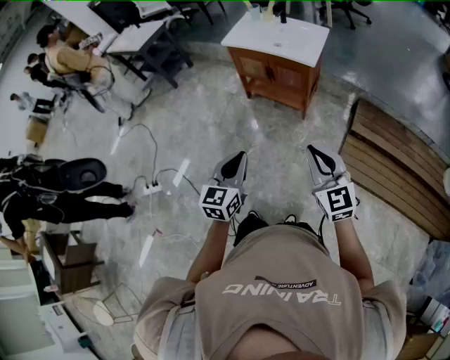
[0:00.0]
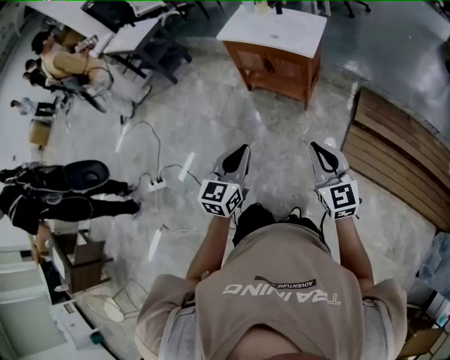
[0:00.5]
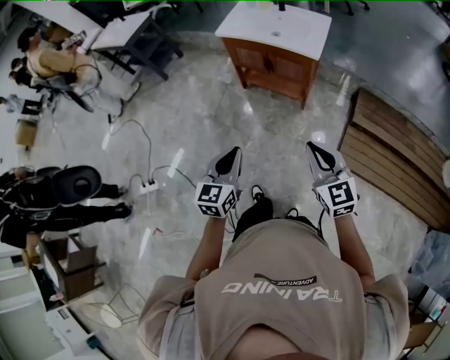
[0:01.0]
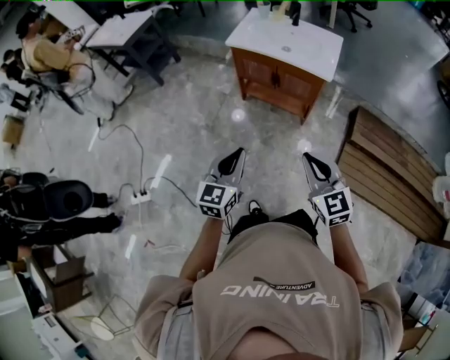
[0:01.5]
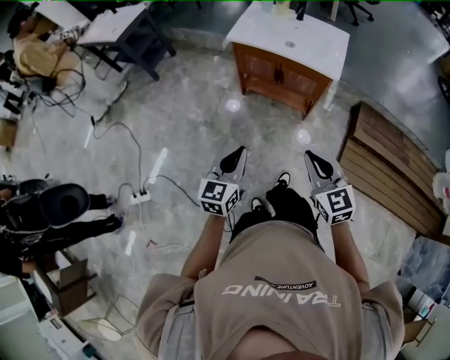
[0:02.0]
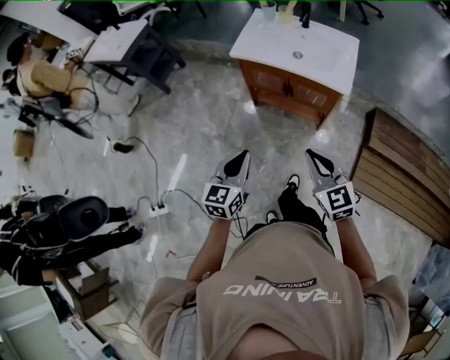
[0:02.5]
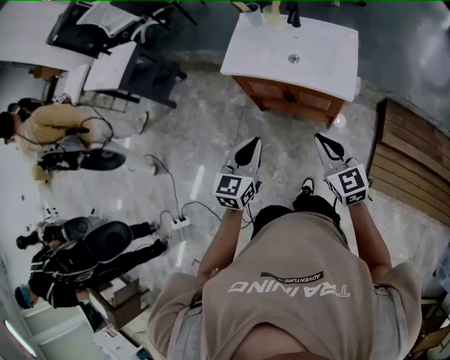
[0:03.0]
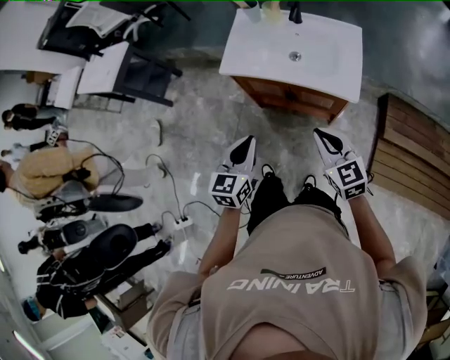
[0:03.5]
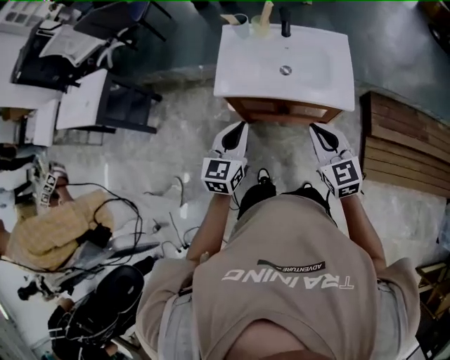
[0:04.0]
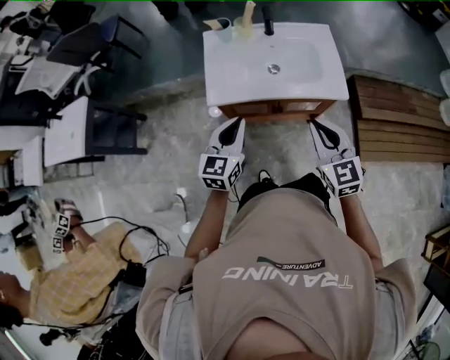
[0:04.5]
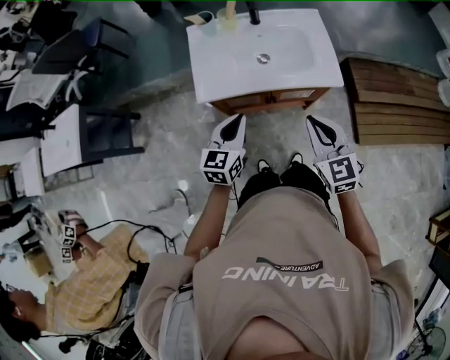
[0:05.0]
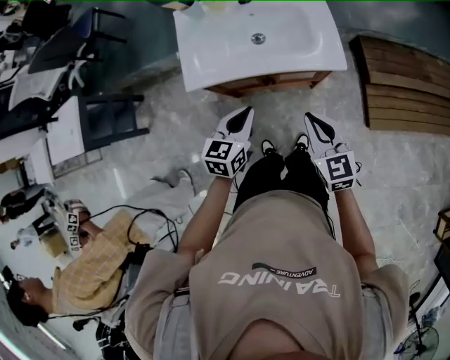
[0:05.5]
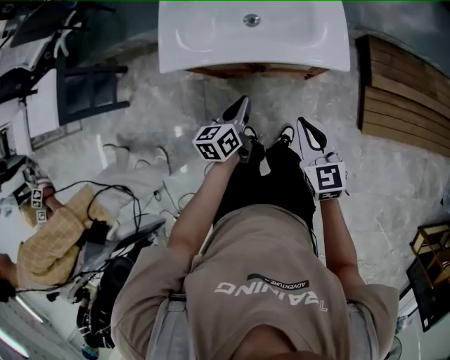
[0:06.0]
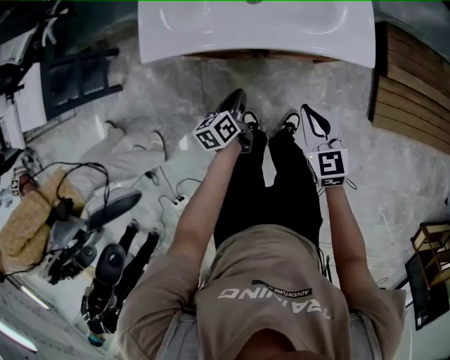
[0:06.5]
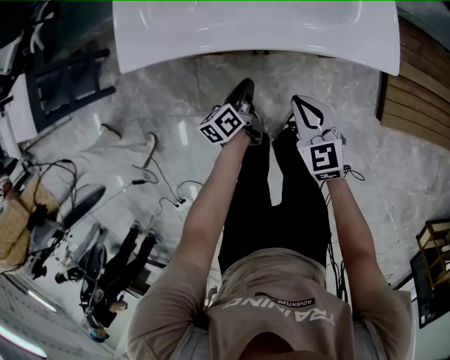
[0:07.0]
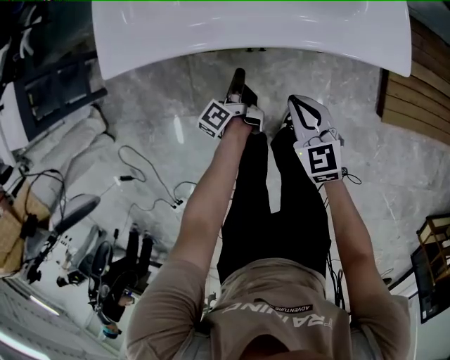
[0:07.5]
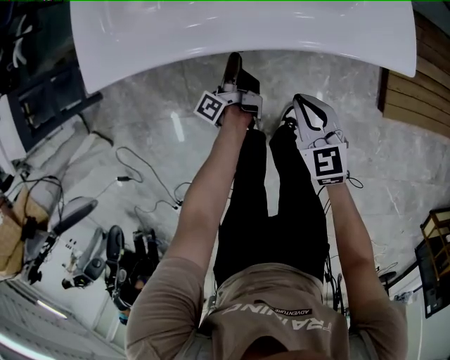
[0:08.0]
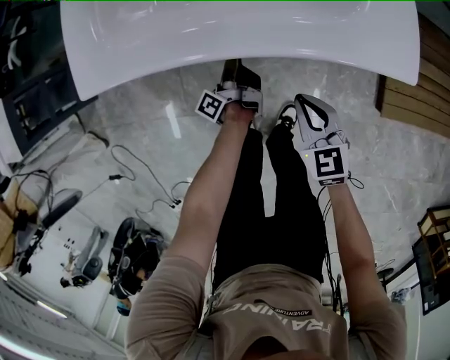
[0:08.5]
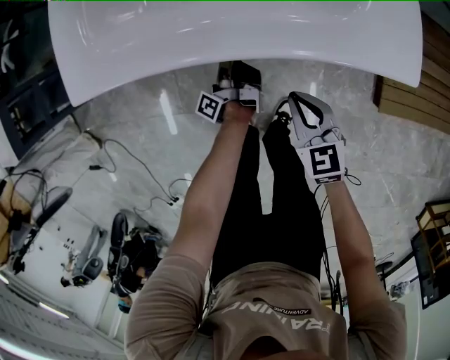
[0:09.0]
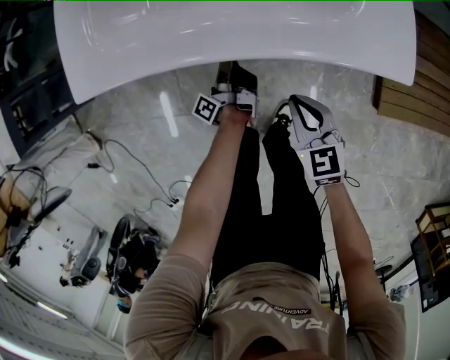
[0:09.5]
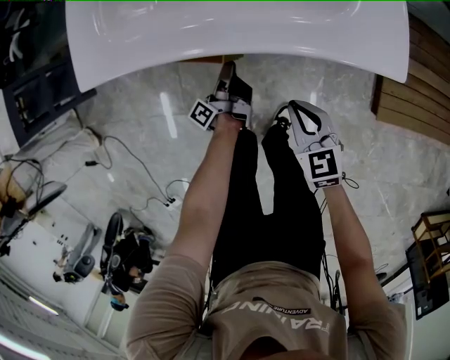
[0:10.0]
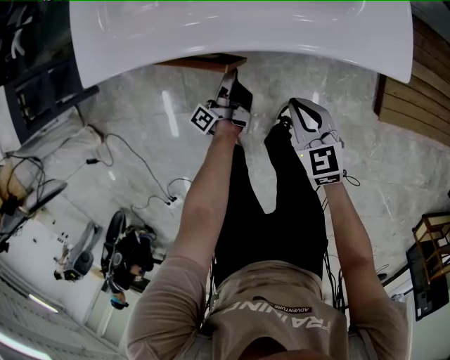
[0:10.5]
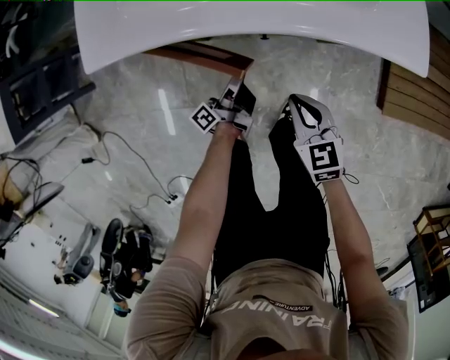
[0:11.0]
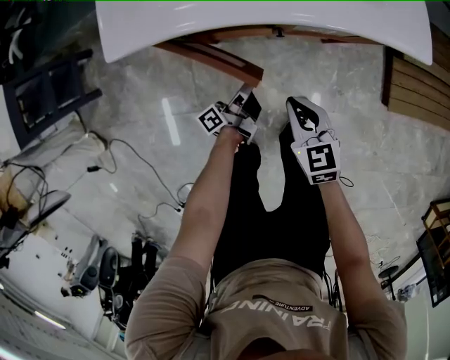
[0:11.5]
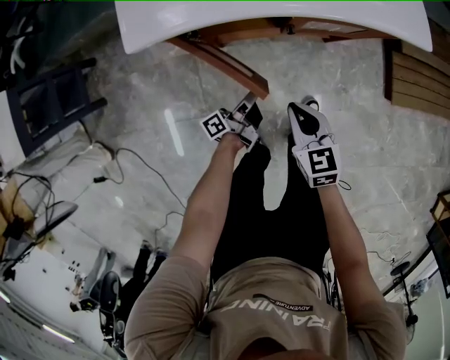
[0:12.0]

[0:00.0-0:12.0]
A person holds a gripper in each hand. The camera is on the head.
0:00.0 to 0:02.0: Both grippers travel together forward and to the left, approximately 20 cm.
0:02.0 to 0:04.0: Both grippers move forward, about 35 cm.
0:04.0 to 0:06.0: The two grippers go roughly 20 cm downward and to the right. The left gripper changes its angle by approximately 30 degrees.
0:06.0 to 0:08.0: Both grippers travel together downward, some 25 cm. The left gripper rolls counterclockwise, seen from behind, by approximately 60 degrees, and opens up.
0:08.0 to 0:10.0: The grippers move only a little.
0:10.0 to 0:12.0: The left gripper heads backward and to the left, covering approximately 15 cm, and rotates about 30 degrees. Meanwhile the right gripper shifts about 15 cm to the left.

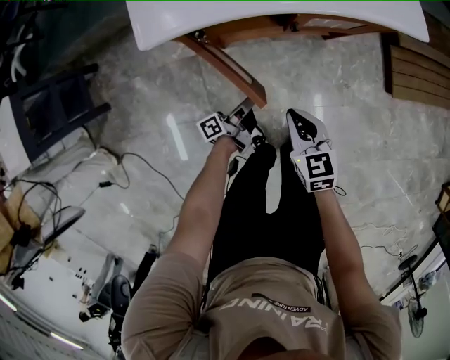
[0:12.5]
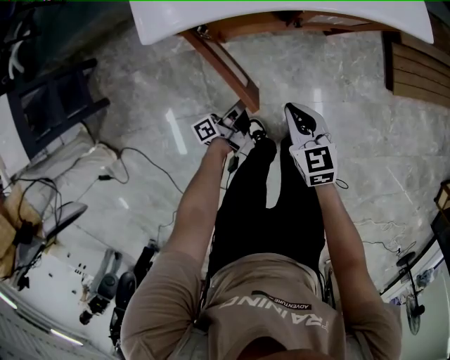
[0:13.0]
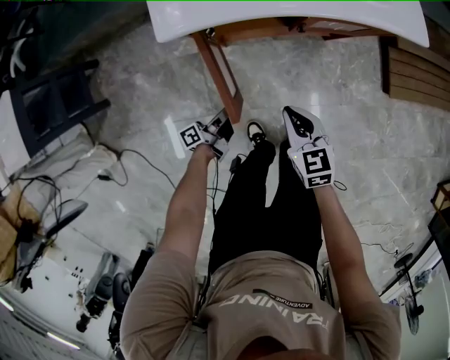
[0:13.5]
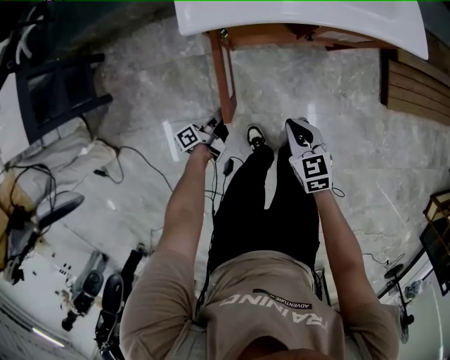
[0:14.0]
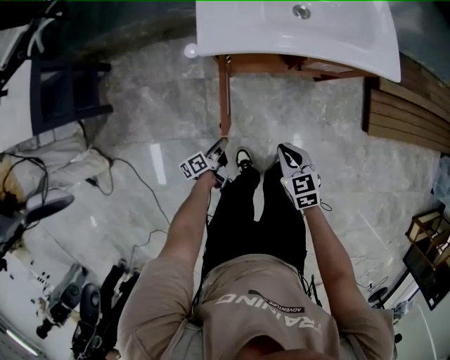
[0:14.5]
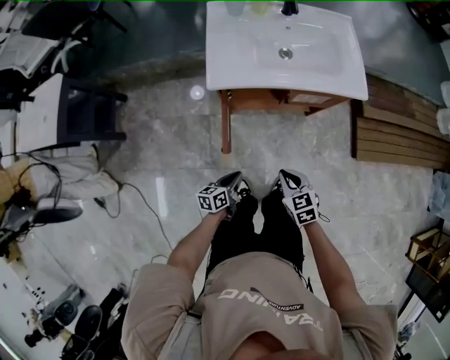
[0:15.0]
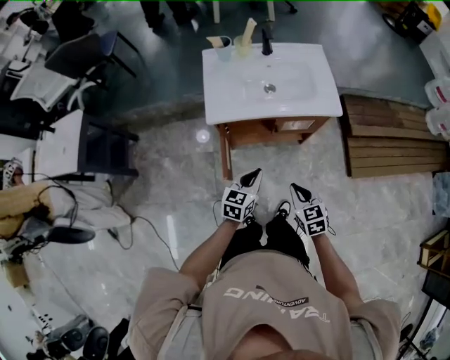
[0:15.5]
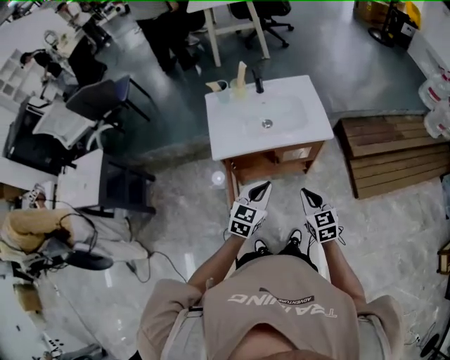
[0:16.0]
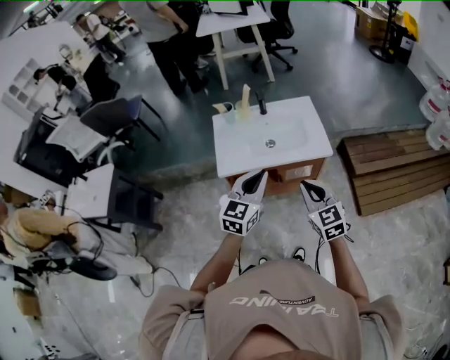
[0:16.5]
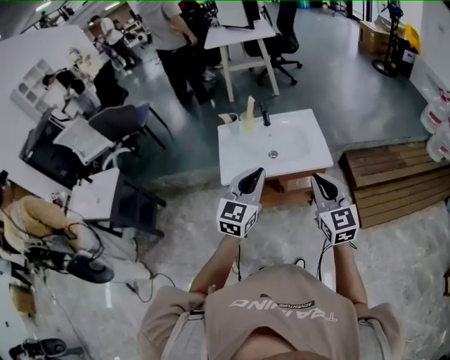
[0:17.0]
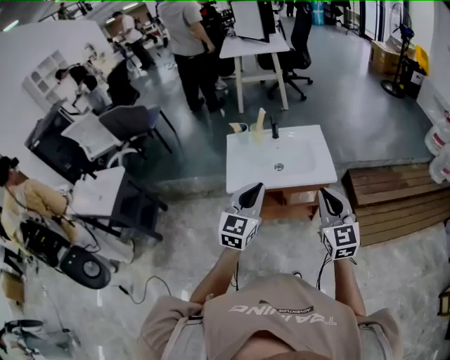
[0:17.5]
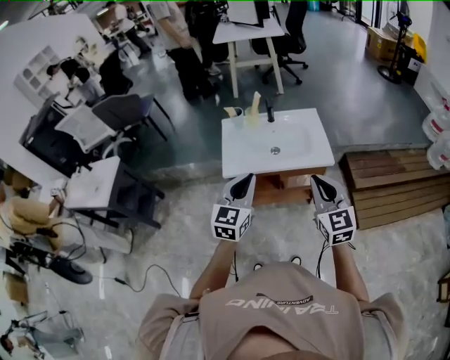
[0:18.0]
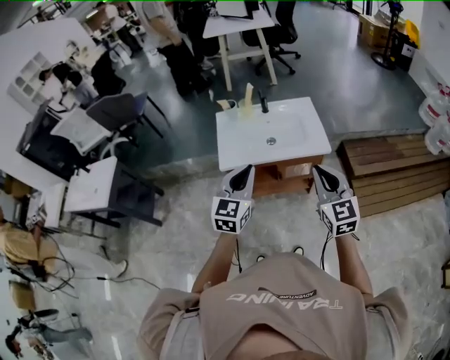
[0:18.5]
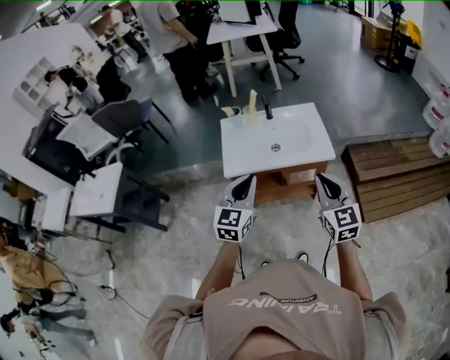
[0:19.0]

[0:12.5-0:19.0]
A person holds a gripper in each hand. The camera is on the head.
0:12.5 to 0:14.5: The right gripper heads backward, covering roughly 5 cm. Meanwhile the left gripper shifts about 15 cm to the left and backward, and changes its angle by roughly 30 degrees.
0:14.5 to 0:17.0: Both grippers move upward, roughly 60 cm. The left gripper rotates around the line of its fingers by roughly 80 degrees, clockwise from behind. Meanwhile the right gripper tilts its fingers roughly 40 degrees upward.
0:17.0 to 0:19.0: The left gripper shifts by some 5 cm.

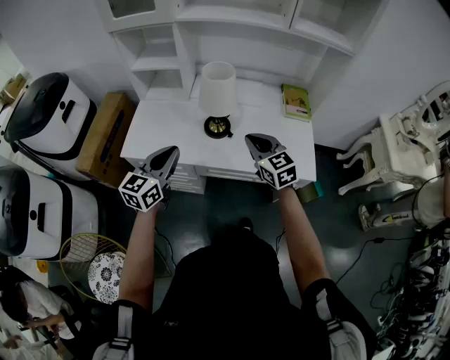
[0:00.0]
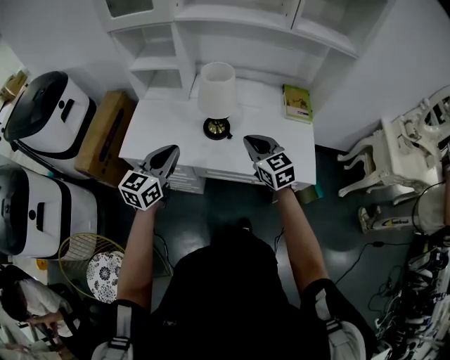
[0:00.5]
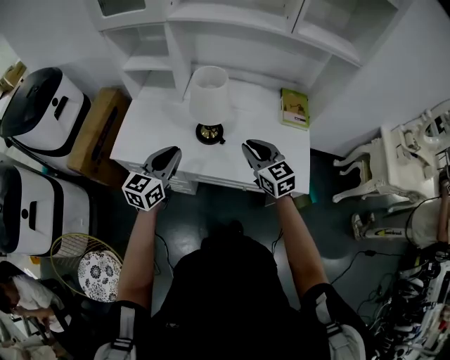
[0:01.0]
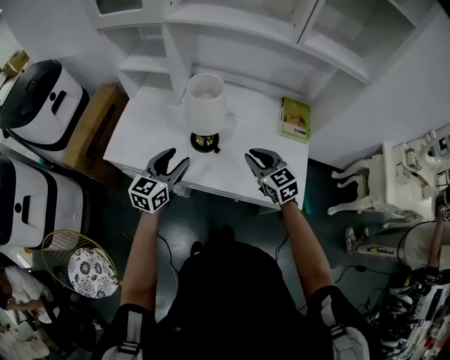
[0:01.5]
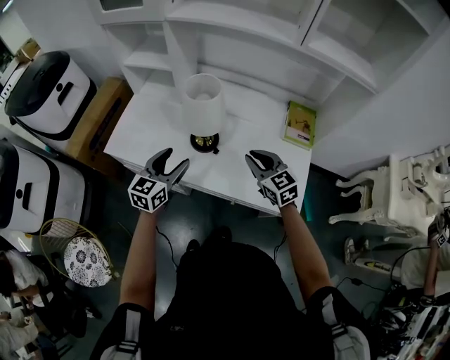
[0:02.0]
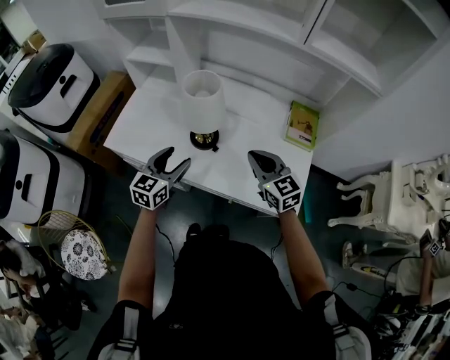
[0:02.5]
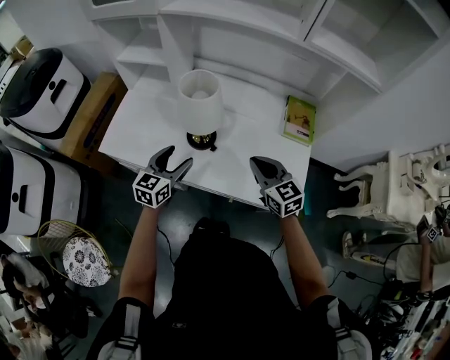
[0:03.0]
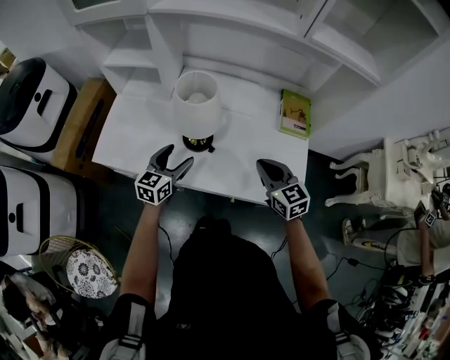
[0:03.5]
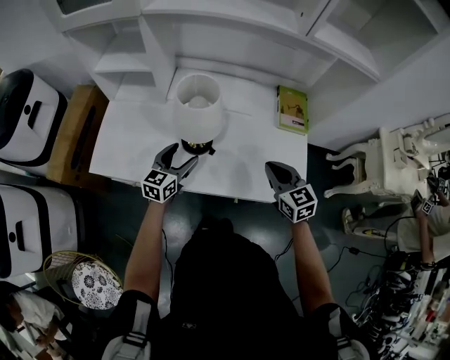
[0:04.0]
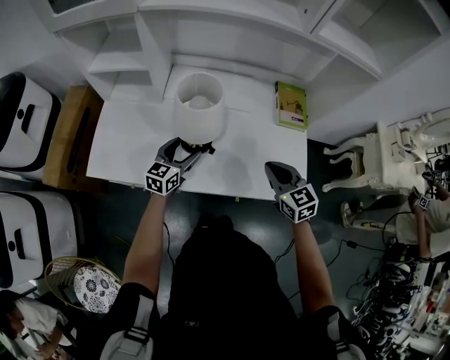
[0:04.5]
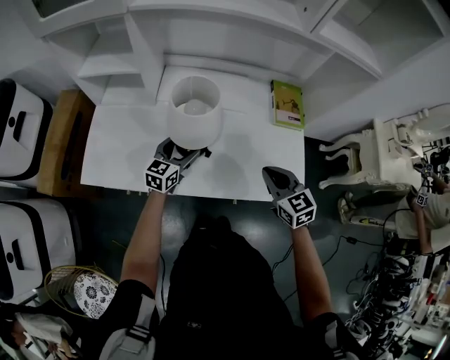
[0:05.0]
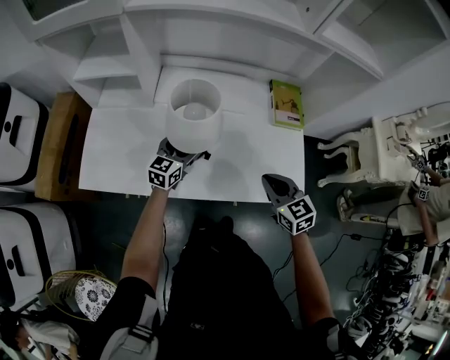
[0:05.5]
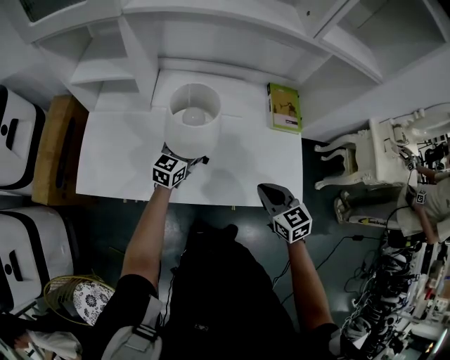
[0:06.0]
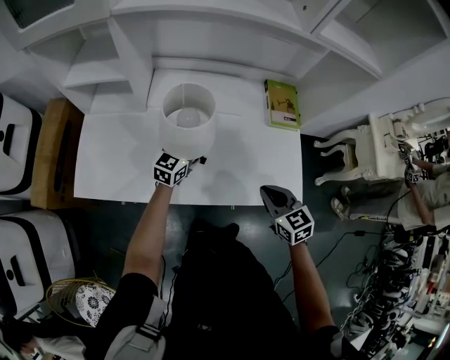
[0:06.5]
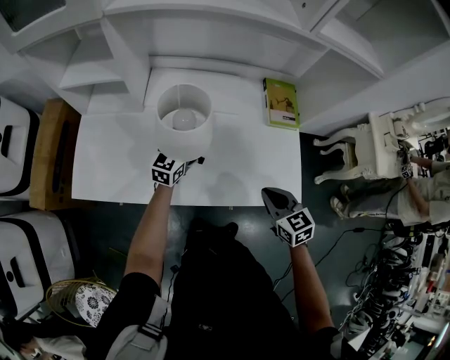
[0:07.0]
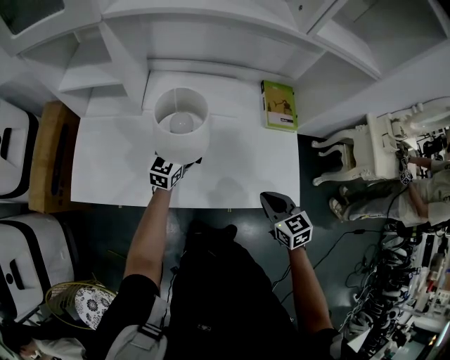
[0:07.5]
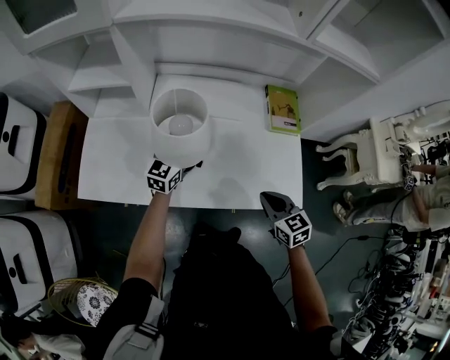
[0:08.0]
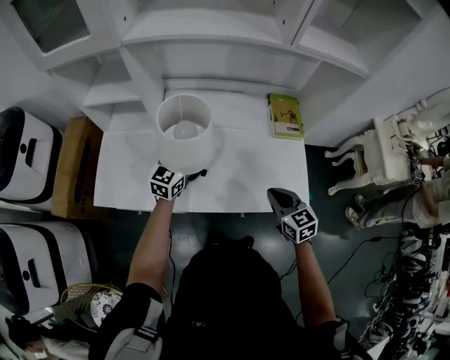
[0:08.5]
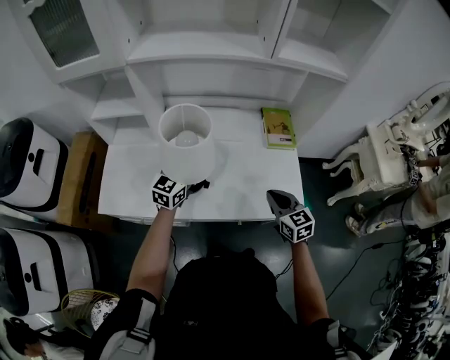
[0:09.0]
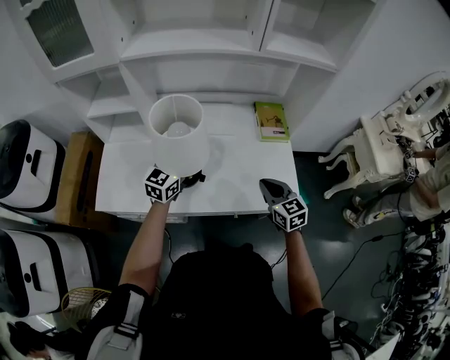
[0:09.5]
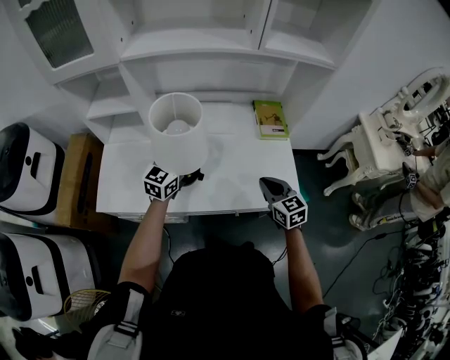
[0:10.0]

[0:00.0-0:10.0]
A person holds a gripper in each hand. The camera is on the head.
0:00.0 to 0:02.0: Both grippers travel together to the right, forward and downward, about 15 cm. The left gripper opens.
0:02.0 to 0:04.0: The left gripper moves downward and forward, some 15 cm.
0:04.0 to 0:06.0: The left gripper is displaced forward by some 10 cm. The right gripper moves some 5 cm.
0:06.0 to 0:08.0: The left gripper closes its fingers.
0:08.0 to 0:10.0: The left gripper heads upward and backward, covering about 10 cm; the right gripper travels upward by some 5 cm.
